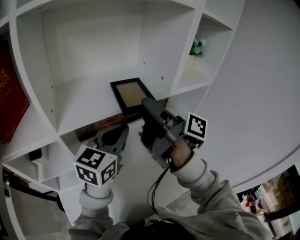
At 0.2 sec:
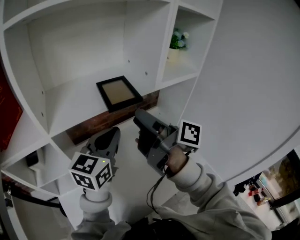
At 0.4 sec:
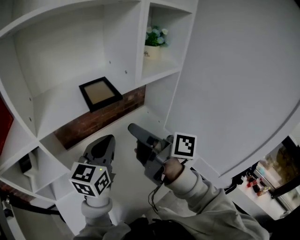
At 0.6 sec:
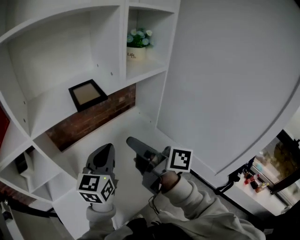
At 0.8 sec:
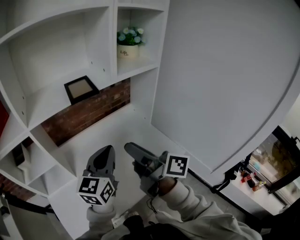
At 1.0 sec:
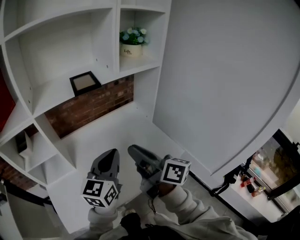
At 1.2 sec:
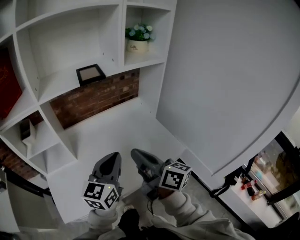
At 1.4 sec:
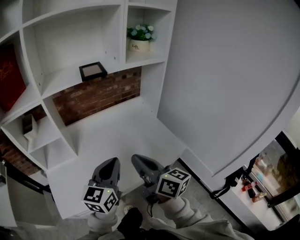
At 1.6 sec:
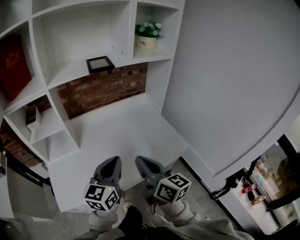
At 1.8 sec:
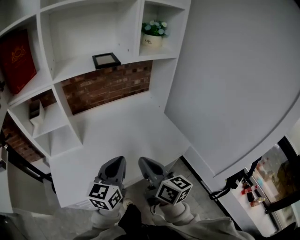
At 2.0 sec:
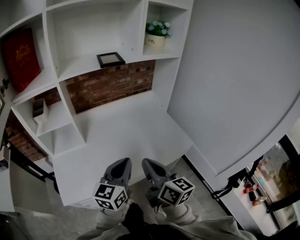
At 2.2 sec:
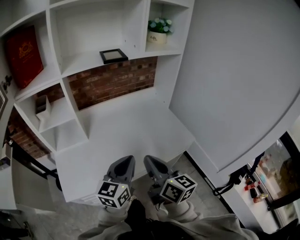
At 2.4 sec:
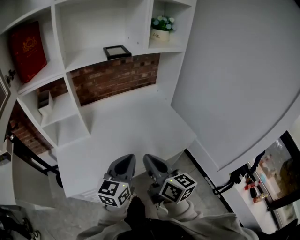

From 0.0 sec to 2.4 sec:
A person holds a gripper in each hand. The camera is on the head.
From 0.0 sec to 1.2 sec: The left gripper changes place by some 30 cm.
From 1.2 sec to 2.4 sec: The left gripper changes place by about 15 cm.

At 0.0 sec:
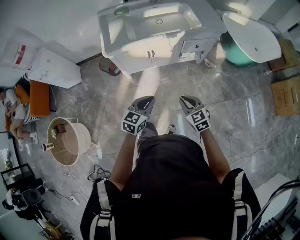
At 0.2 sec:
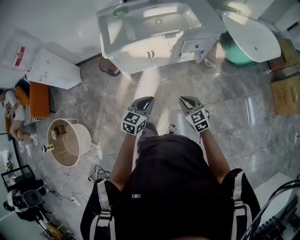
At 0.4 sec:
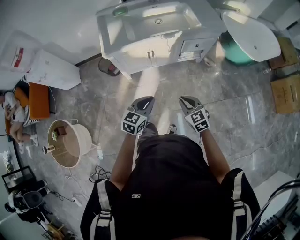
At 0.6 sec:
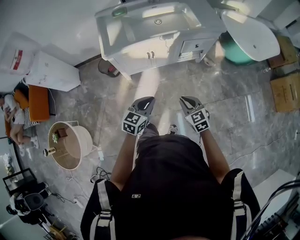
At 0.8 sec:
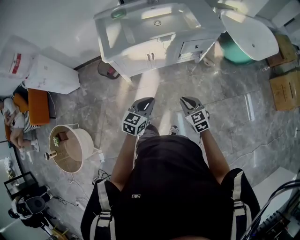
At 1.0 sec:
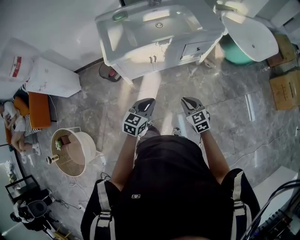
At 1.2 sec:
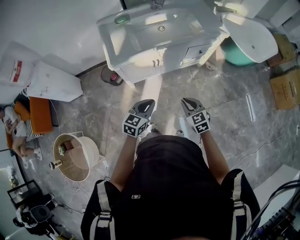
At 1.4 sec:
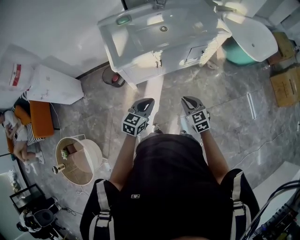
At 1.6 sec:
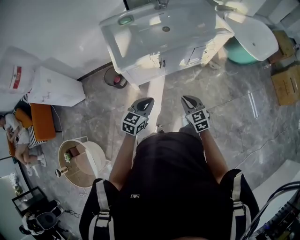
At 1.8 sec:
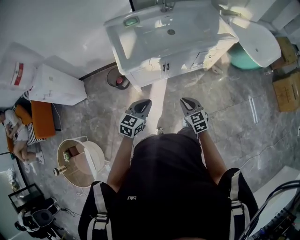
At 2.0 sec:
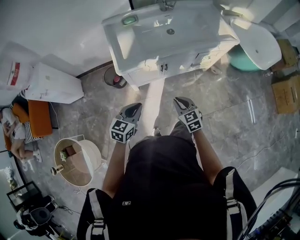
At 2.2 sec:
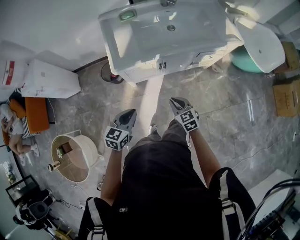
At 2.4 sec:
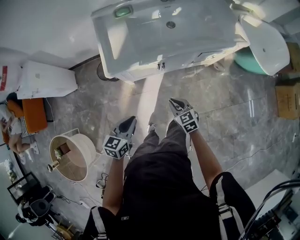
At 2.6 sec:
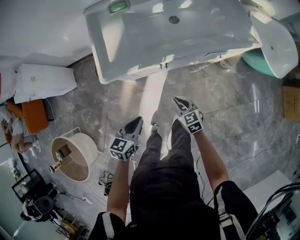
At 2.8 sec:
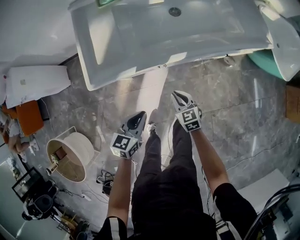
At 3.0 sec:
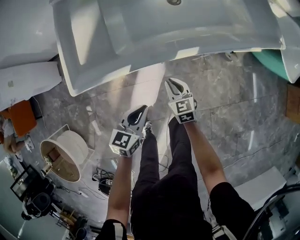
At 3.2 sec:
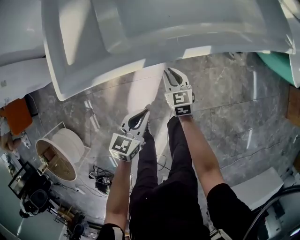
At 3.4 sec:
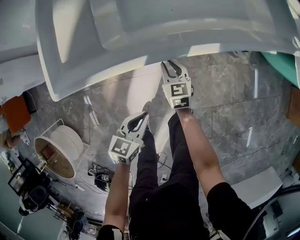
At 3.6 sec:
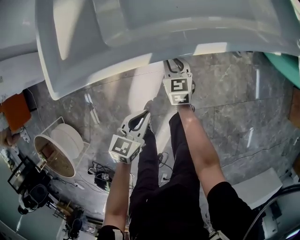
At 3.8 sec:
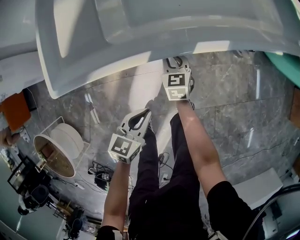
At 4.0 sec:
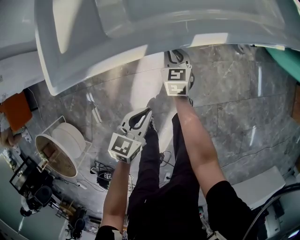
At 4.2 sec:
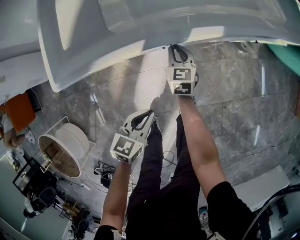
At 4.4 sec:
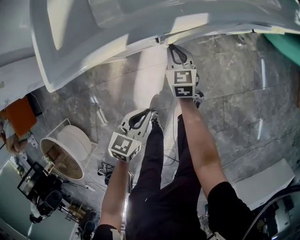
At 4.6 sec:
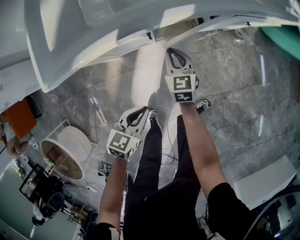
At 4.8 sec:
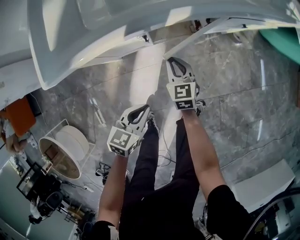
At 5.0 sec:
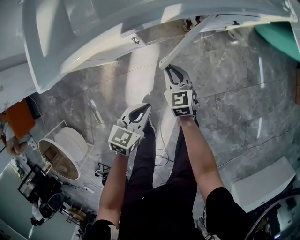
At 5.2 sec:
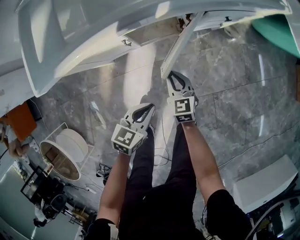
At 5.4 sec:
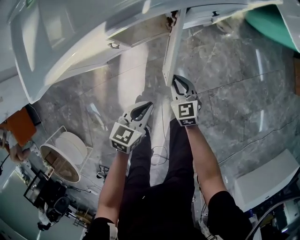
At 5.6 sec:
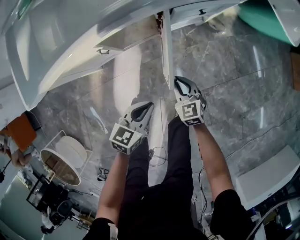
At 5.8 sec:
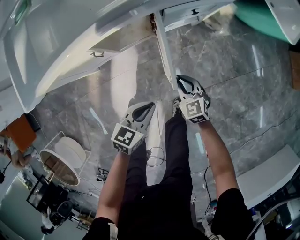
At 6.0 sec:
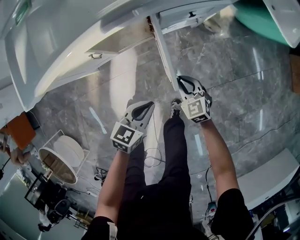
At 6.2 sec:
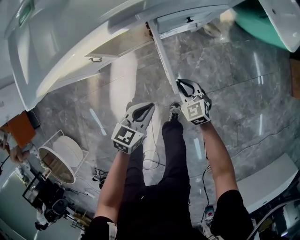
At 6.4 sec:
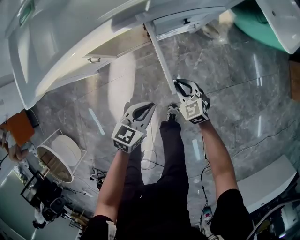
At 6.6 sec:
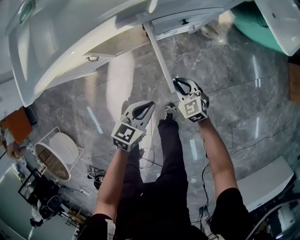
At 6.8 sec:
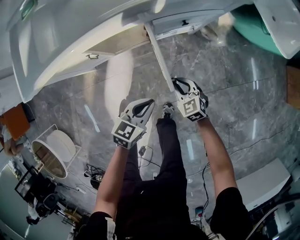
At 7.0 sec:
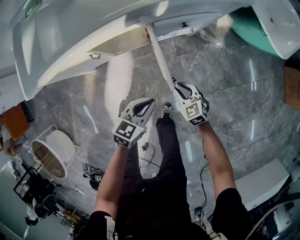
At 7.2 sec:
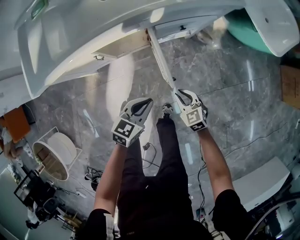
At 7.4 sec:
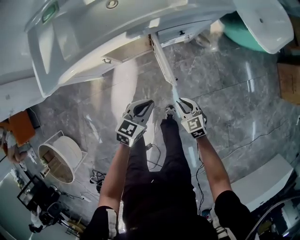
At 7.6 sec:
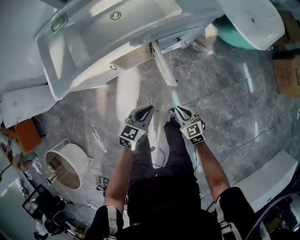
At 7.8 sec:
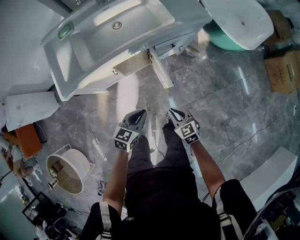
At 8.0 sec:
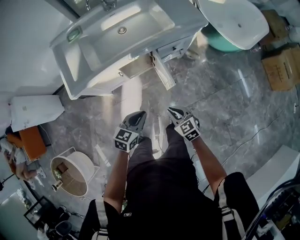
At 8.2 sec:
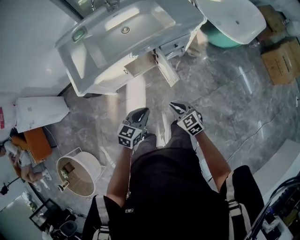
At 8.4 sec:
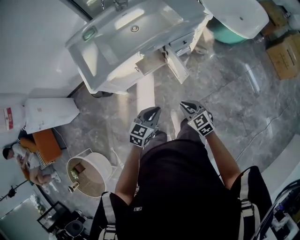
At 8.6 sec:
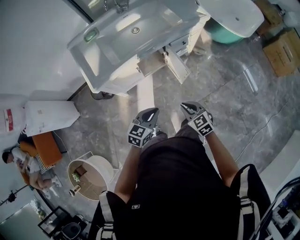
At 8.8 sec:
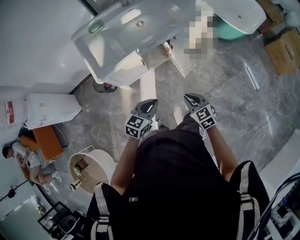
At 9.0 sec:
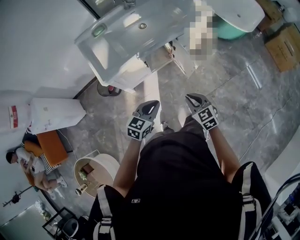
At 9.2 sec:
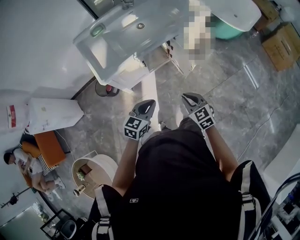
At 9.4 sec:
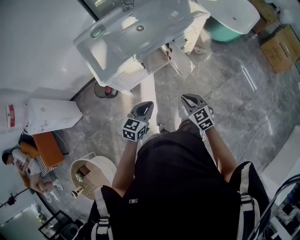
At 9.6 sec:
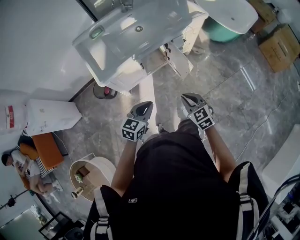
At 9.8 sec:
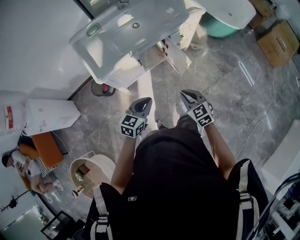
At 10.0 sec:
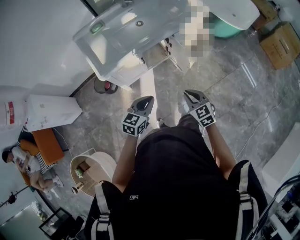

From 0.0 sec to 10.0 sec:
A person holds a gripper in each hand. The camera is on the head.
From 0.0 sec to 1.4 sec: Both grippers travel together to the left and forward, some 15 cm.
From 1.4 sec to 2.8 sec: Both grippers move downward and forward, some 25 cm.
From 2.8 sec to 4.2 sec: The left gripper heads downward, covering some 15 cm. Meanwhile the right gripper moves forward and downward, roughly 20 cm, and rotates about 20 degrees.
From 4.2 sec to 5.8 sec: Both grippers travel together to the right, approximately 25 cm.
From 5.8 sec to 7.2 sec: The left gripper moves upward, approximately 5 cm, while the right gripper is displaced to the right by approximately 5 cm.
From 7.2 sec to 8.6 sec: The right gripper moves upward, backward and to the left, about 40 cm. The left gripper goes some 30 cm upward, to the left and backward.
From 8.6 sec to 10.0 sec: The left gripper shifts roughly 5 cm to the left, while the right gripper moves roughly 5 cm.

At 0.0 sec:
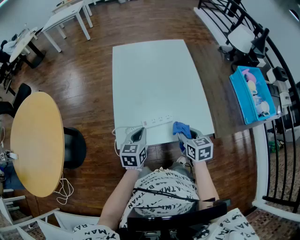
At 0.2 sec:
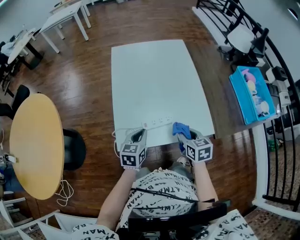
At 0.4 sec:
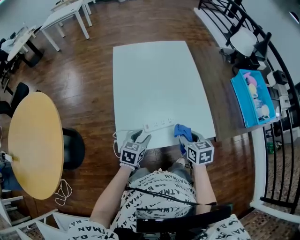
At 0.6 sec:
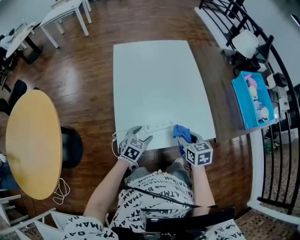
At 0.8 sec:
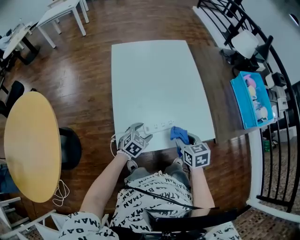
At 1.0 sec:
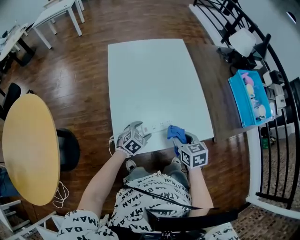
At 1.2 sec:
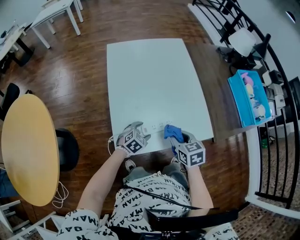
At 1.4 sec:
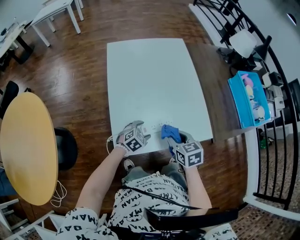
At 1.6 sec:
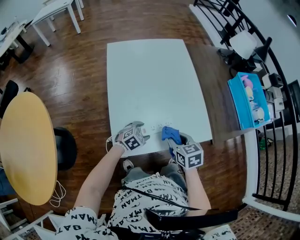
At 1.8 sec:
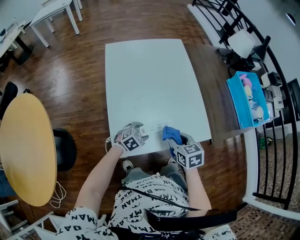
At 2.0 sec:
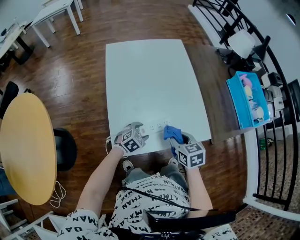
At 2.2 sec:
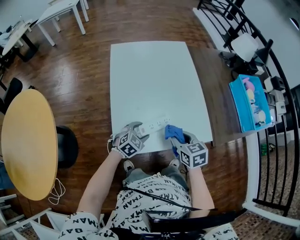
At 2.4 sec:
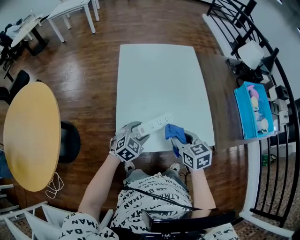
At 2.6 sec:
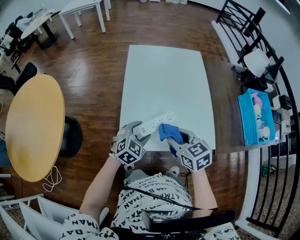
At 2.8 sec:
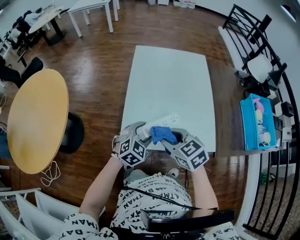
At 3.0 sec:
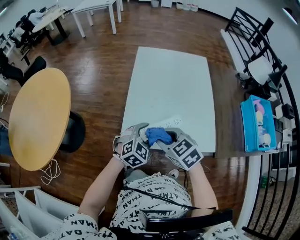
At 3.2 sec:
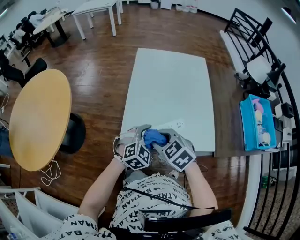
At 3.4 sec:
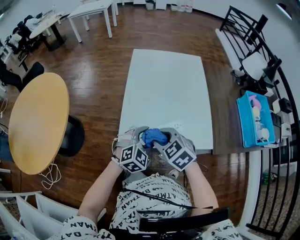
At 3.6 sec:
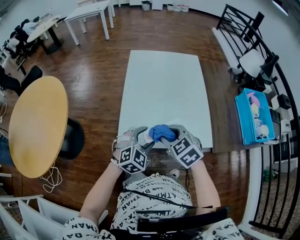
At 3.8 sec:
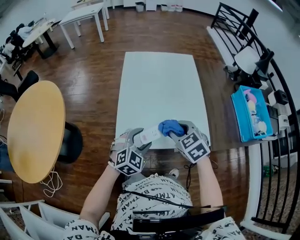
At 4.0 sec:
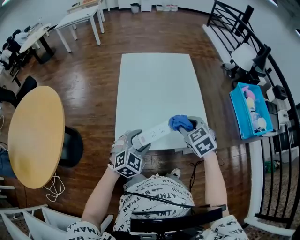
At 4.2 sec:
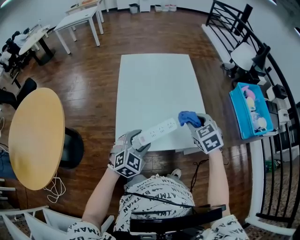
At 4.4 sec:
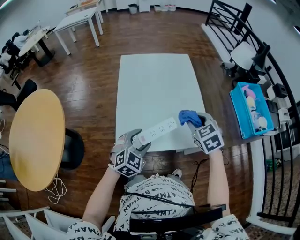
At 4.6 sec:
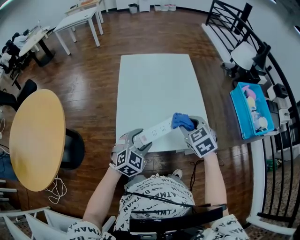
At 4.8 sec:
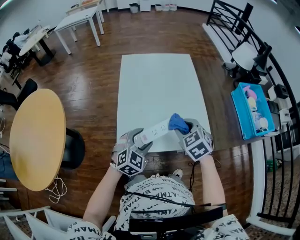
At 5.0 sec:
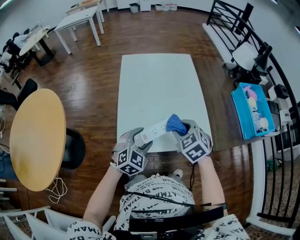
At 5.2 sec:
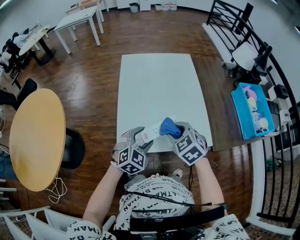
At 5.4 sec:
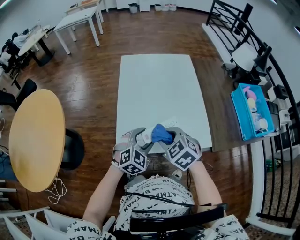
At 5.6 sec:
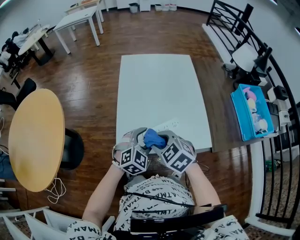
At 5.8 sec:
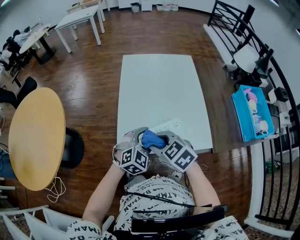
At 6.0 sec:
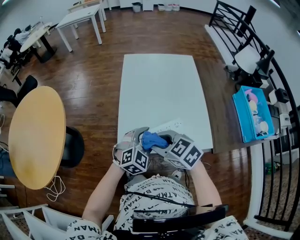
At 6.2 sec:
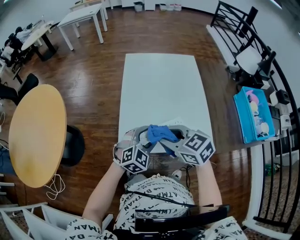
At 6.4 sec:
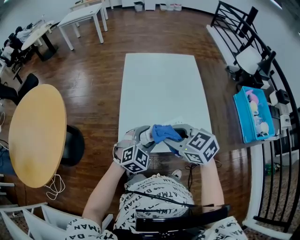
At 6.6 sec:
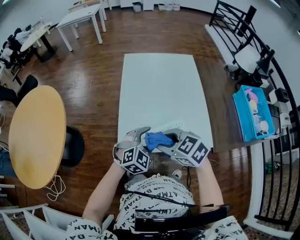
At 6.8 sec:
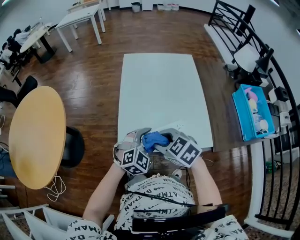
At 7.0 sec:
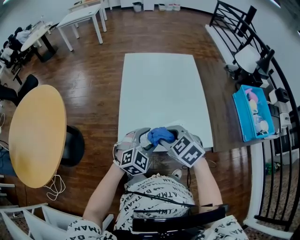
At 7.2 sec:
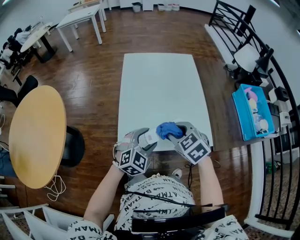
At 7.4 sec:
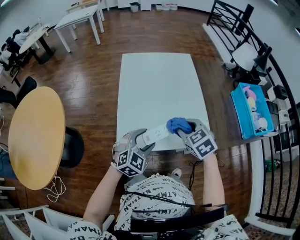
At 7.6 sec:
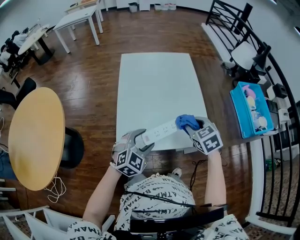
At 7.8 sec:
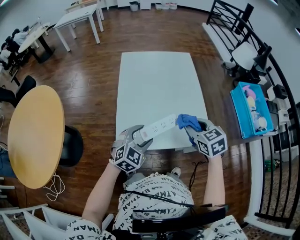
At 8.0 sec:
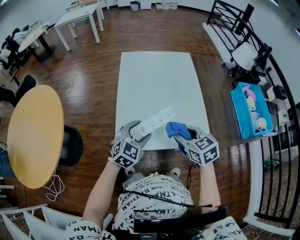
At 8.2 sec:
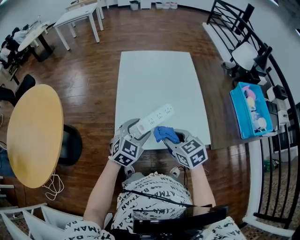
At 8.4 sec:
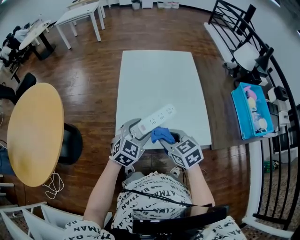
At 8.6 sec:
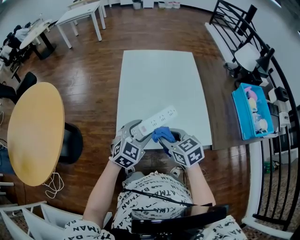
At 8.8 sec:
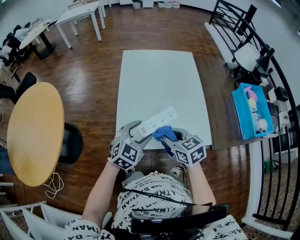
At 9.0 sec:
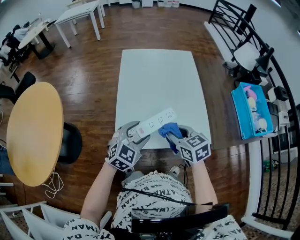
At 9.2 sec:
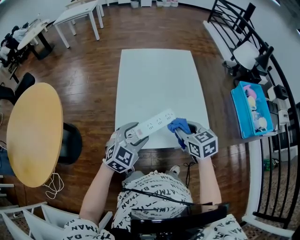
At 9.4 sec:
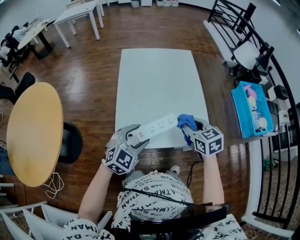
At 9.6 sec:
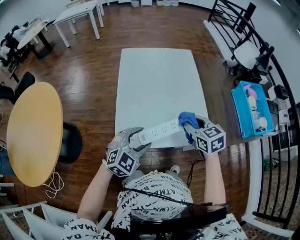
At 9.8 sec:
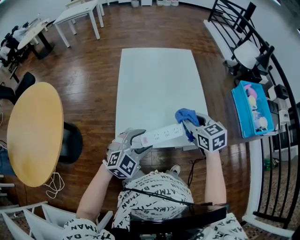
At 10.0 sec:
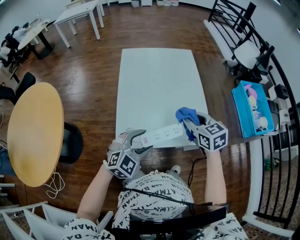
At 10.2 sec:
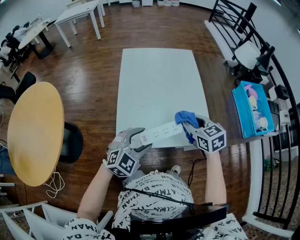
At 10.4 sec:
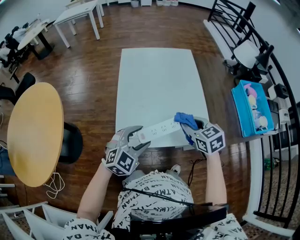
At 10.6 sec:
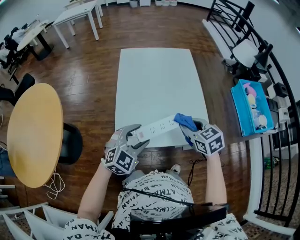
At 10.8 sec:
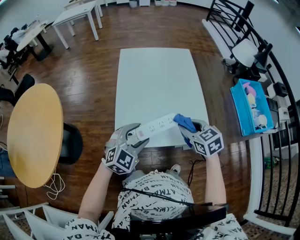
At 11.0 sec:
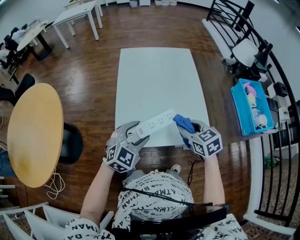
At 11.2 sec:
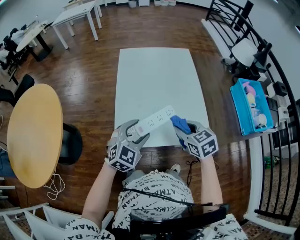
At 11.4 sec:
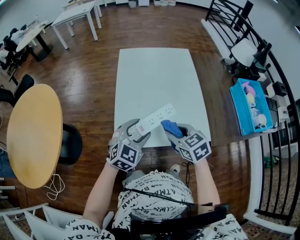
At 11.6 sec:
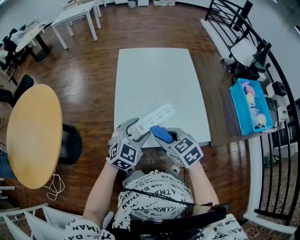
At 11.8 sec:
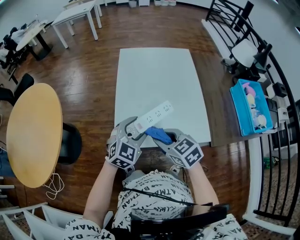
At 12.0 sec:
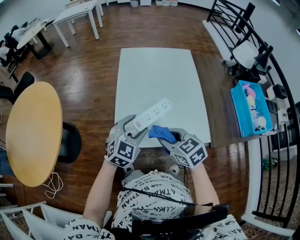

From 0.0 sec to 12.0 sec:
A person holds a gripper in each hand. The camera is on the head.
From 0.0 sec to 1.6 sec: The left gripper moves downward, some 15 cm, turns by approximately 60 degrees, and opens up. Meanwhile the right gripper shifts some 5 cm to the left.
From 1.6 sec to 3.0 sec: The left gripper heads upward, covering roughly 15 cm, and changes its angle by roughly 30 degrees. Meanwhile the right gripper ends up approximately 15 cm from where it was, and rotates roughly 40 degrees.
From 3.0 sec to 4.4 sec: The right gripper heads to the right, covering some 20 cm, and swivels about 30 degrees.
From 4.4 sec to 6.0 sec: The right gripper shifts roughly 20 cm to the left and backward, and changes its angle by about 40 degrees.
From 6.0 sec to 7.6 sec: The right gripper heads to the right, covering approximately 20 cm, and rotates approximately 30 degrees.
From 7.6 sec to 9.0 sec: The right gripper heads to the left, covering some 10 cm, and turns by some 20 degrees.
From 9.0 sec to 10.4 sec: The right gripper goes roughly 5 cm to the right.
From 10.4 sec to 12.0 sec: The left gripper moves forward, roughly 5 cm. Meanwhile the right gripper shifts about 15 cm to the left and backward.
